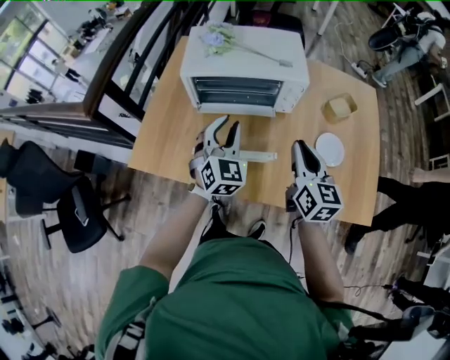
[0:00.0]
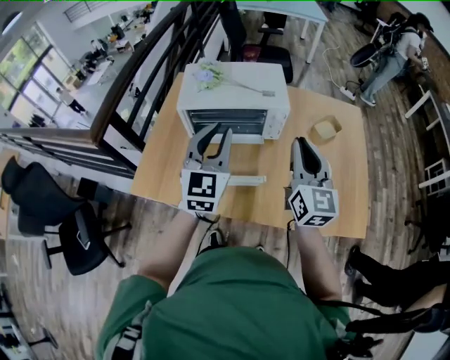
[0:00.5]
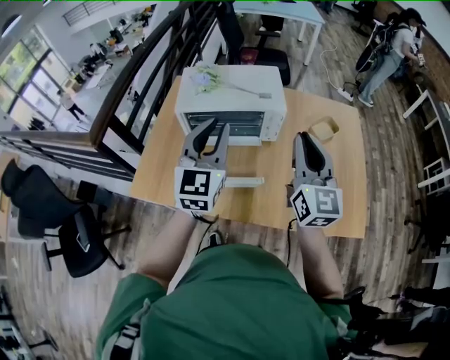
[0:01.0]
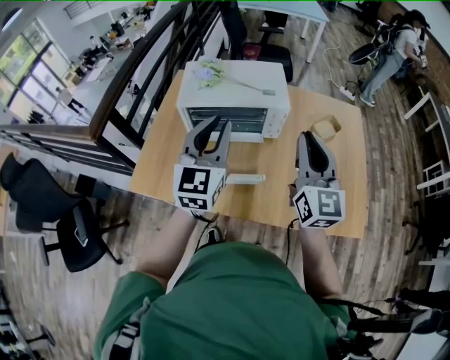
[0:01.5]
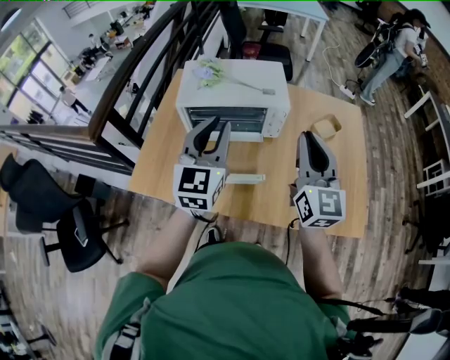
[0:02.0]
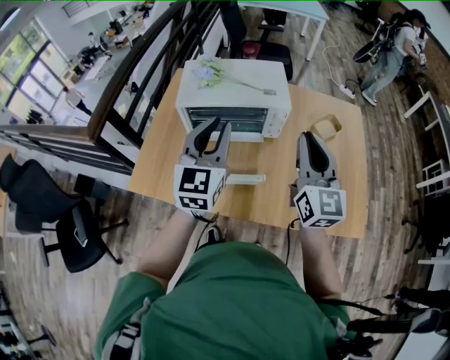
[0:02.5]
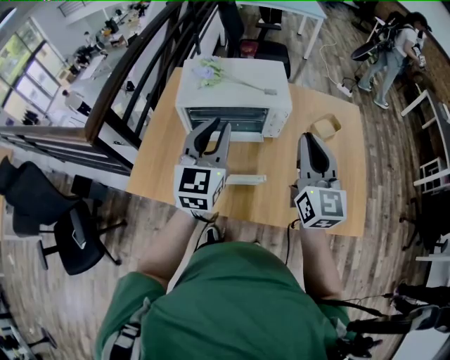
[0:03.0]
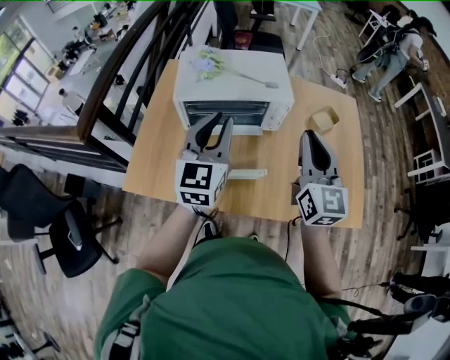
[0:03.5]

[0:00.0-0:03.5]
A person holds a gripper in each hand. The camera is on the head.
0:00.0 to 0:02.0: Both grippers travel together upward, approximately 15 cm. The left gripper changes its angle by approximately 30 degrees, while the right gripper changes its angle by some 20 degrees.
0:02.0 to 0:03.5: The grippers move only a little.

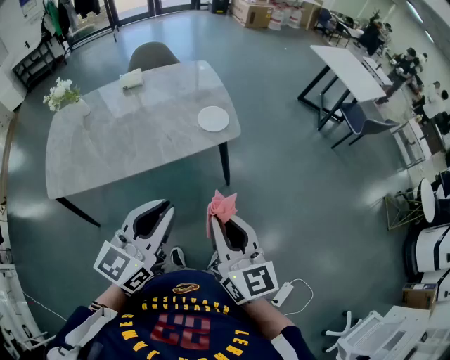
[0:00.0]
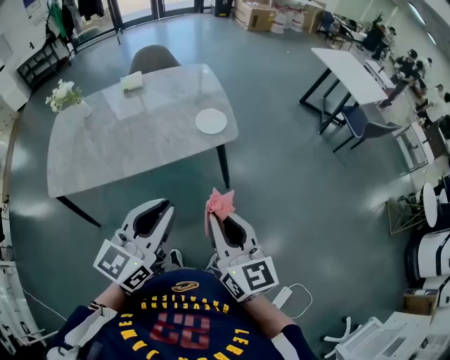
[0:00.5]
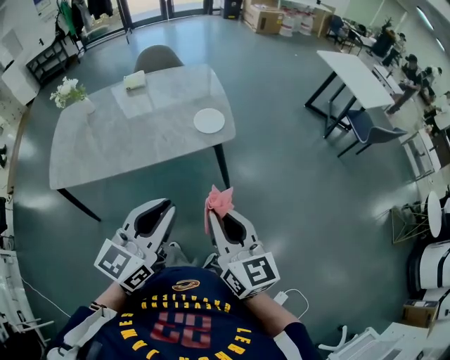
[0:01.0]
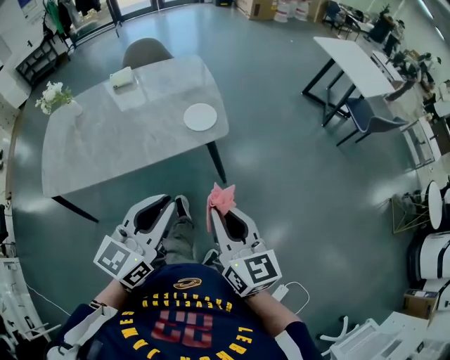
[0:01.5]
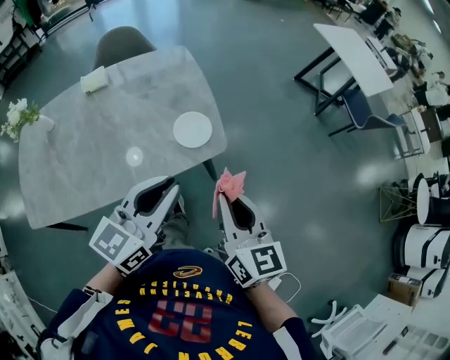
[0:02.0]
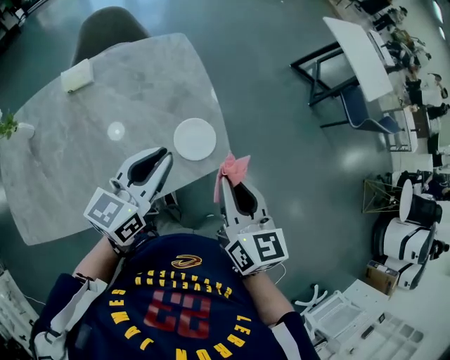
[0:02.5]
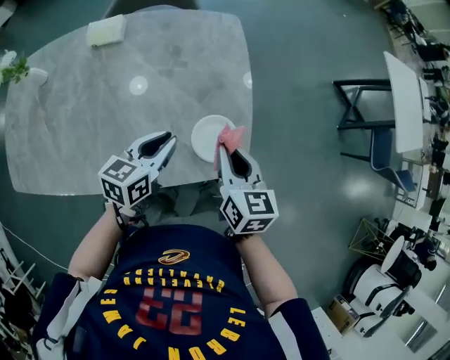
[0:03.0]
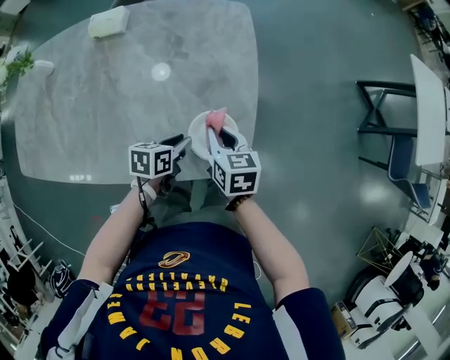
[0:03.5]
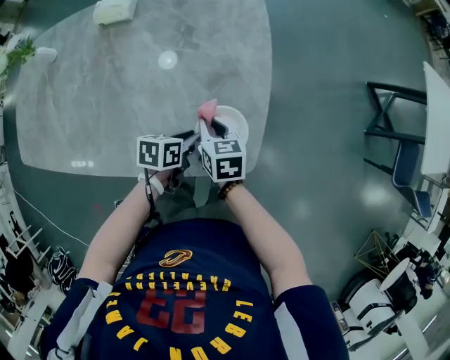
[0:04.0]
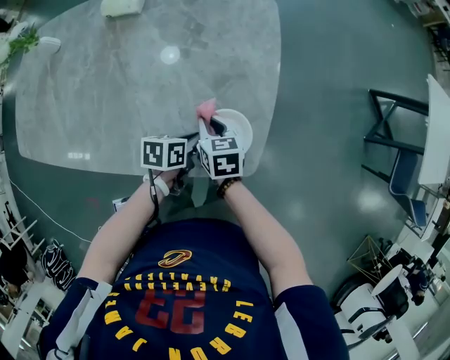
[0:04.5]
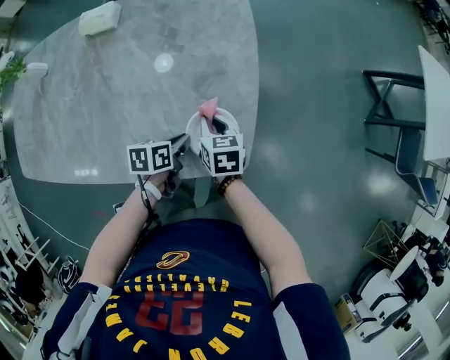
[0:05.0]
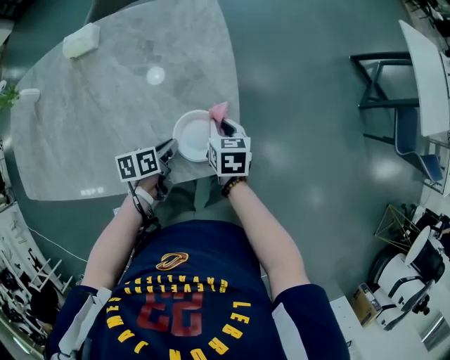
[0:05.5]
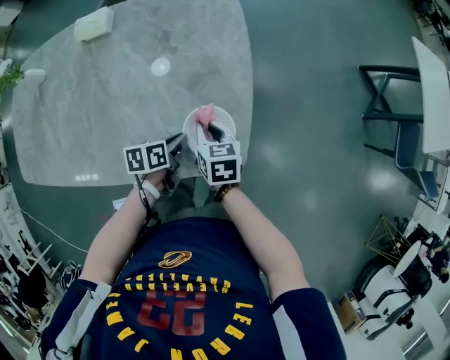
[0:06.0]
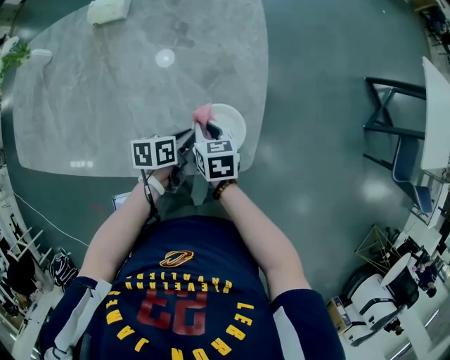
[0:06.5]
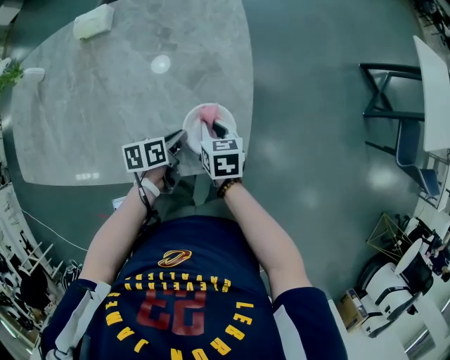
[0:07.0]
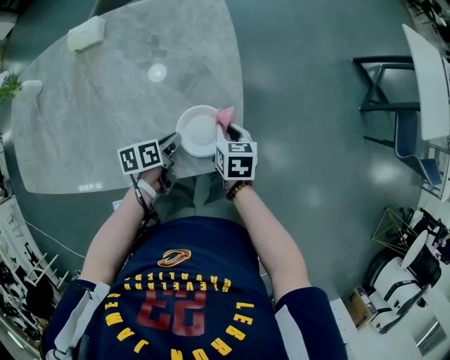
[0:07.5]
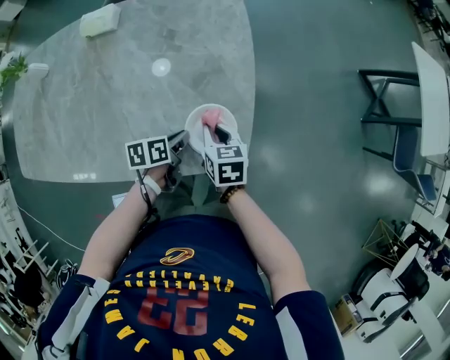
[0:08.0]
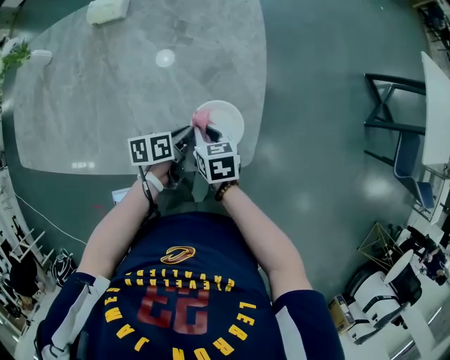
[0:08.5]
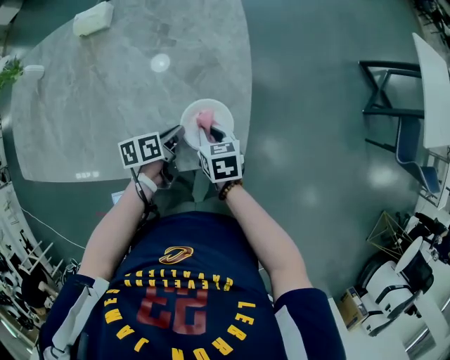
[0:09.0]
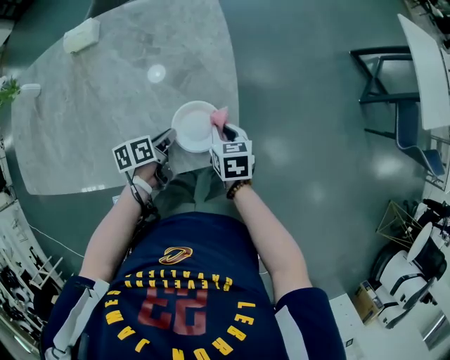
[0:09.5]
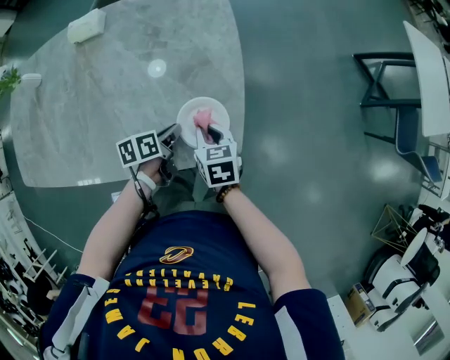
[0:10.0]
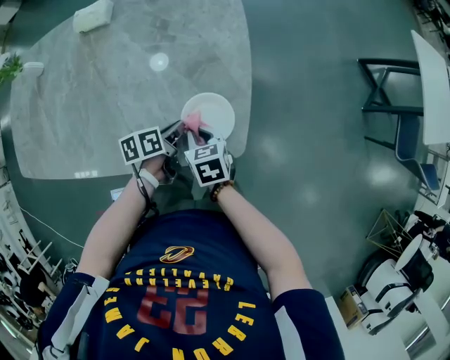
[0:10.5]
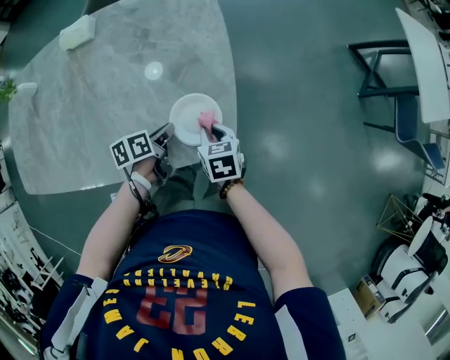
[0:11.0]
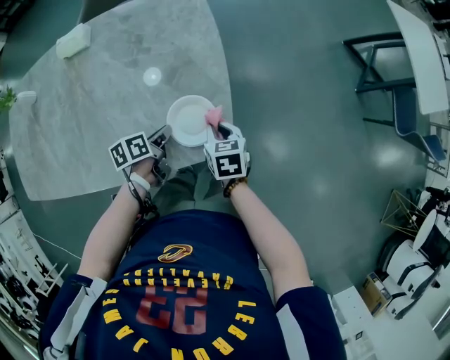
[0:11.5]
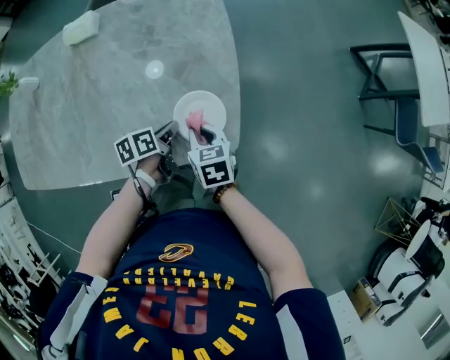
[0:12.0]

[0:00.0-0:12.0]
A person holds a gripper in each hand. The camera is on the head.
0:00.0 to 0:02.0: The grippers both shift forward by approximately 25 cm.
0:02.0 to 0:04.0: The grippers both shift downward and forward by about 50 cm. The left gripper tilts its fingers roughly 40 degrees downward. Meanwhile the right gripper angles its fingers downward, by approximately 30 degrees.
0:04.0 to 0:06.0: The right gripper moves some 10 cm to the right and comes back.
0:06.0 to 0:08.0: The right gripper goes left and right, roughly 10 cm each way, reversing 2 times.
0:08.0 to 0:10.0: The right gripper swings left and right, roughly 10 cm each way, with 2 reversals.
0:10.0 to 0:12.0: The right gripper moves left and right over roughly 10 cm, changing direction 2 times.

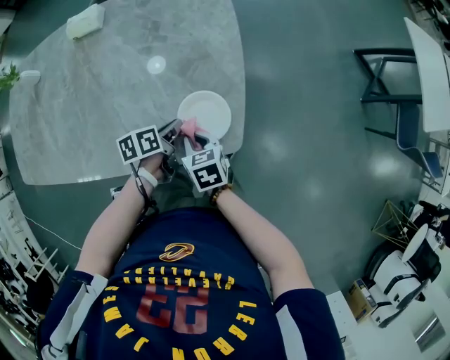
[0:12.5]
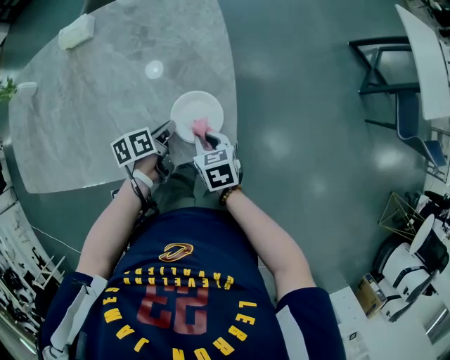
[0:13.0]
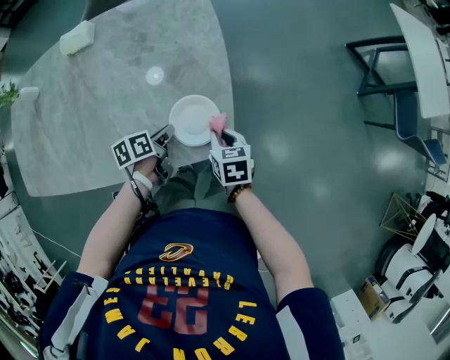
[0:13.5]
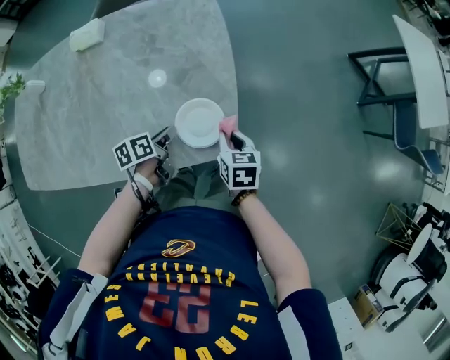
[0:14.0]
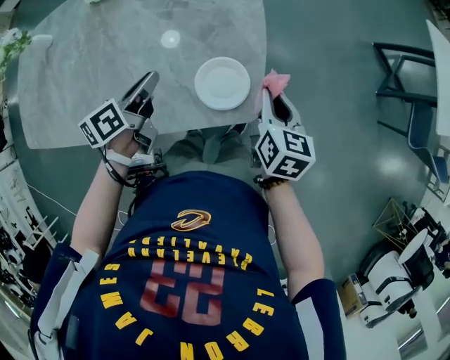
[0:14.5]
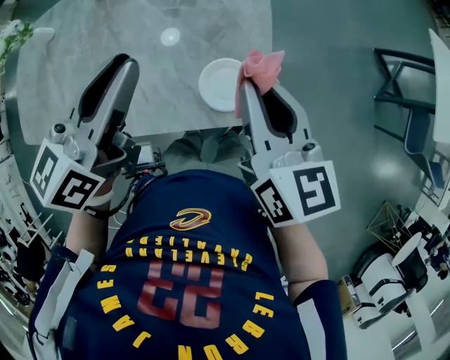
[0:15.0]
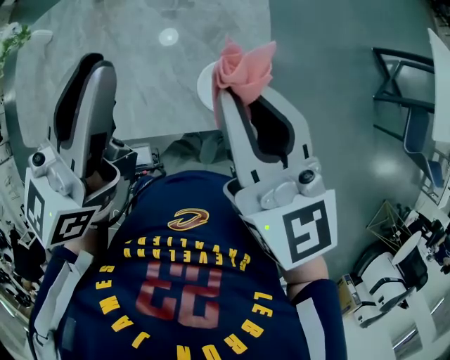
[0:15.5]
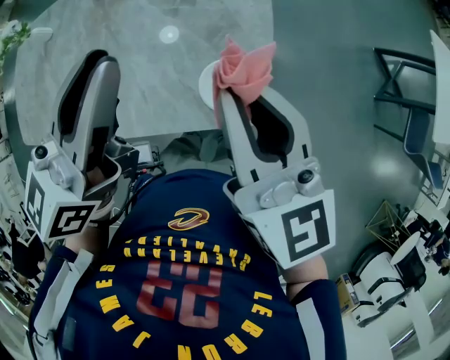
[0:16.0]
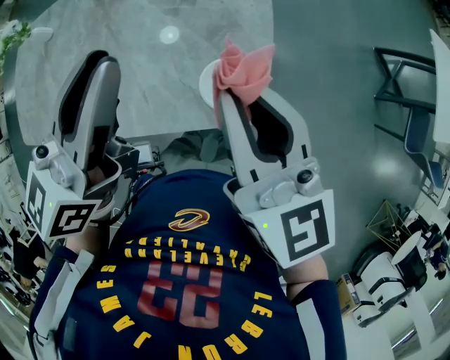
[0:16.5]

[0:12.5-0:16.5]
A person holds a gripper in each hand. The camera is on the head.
0:12.5 to 0:14.5: The right gripper goes about 20 cm to the right, upward and forward, and swivels about 30 degrees. The left gripper heads upward and to the left, covering about 15 cm, and swivels roughly 20 degrees.
0:14.5 to 0:16.5: The right gripper goes roughly 25 cm upward and to the left, and swivels roughly 40 degrees; the left gripper is displaced upward by approximately 30 cm, and turns by approximately 40 degrees.

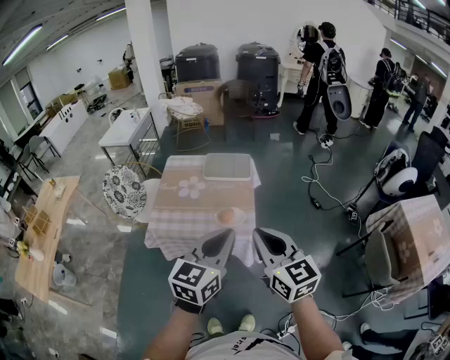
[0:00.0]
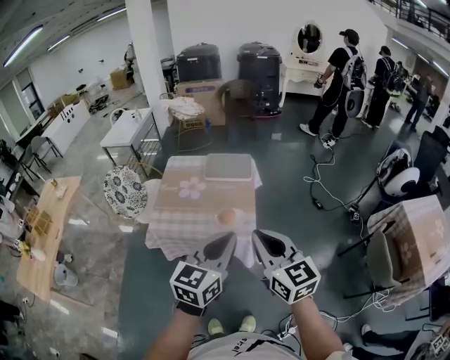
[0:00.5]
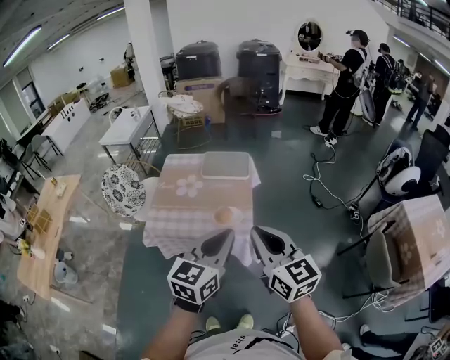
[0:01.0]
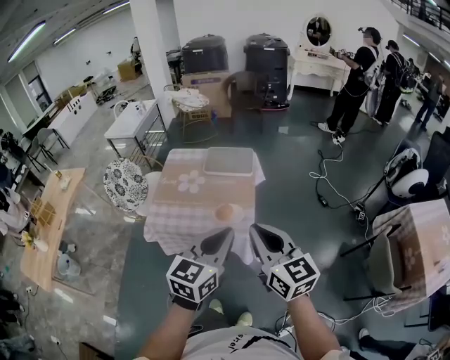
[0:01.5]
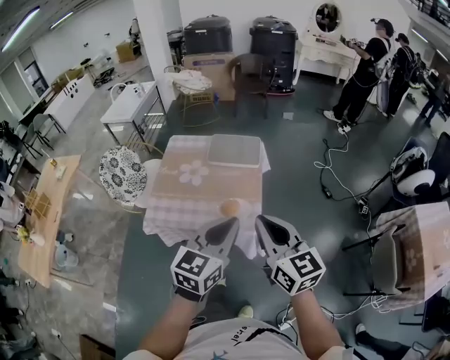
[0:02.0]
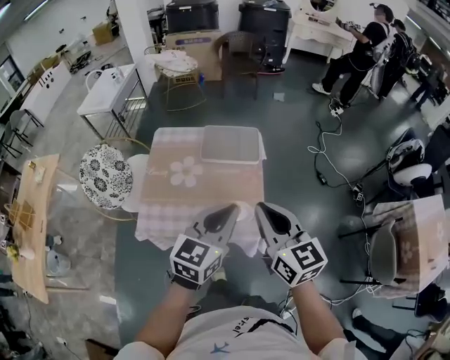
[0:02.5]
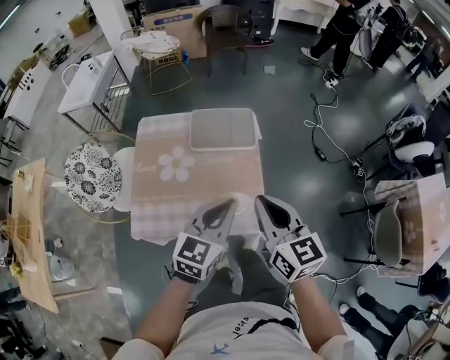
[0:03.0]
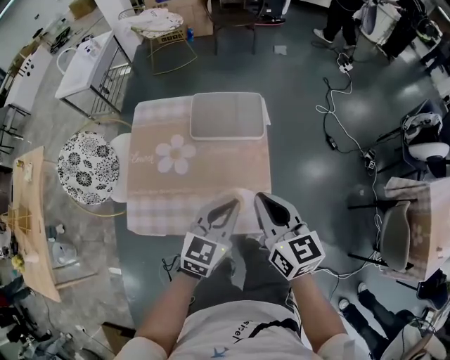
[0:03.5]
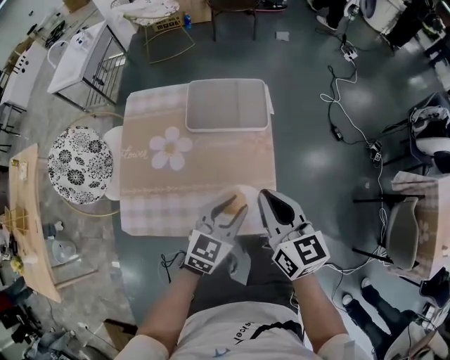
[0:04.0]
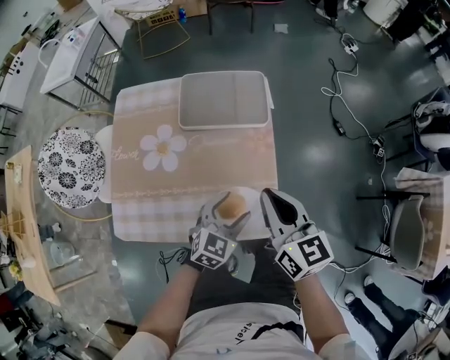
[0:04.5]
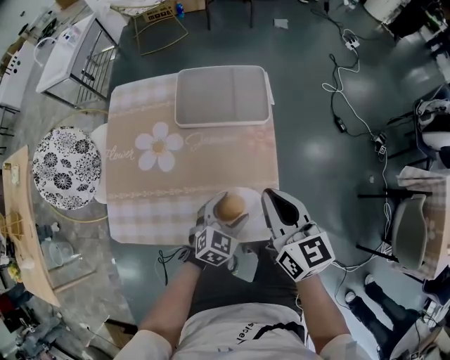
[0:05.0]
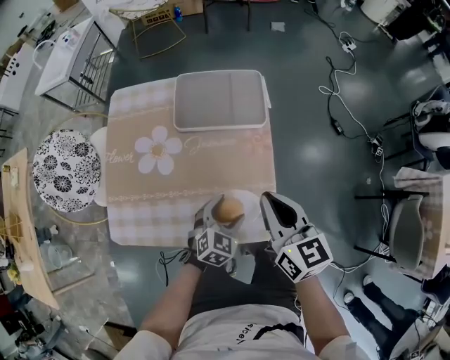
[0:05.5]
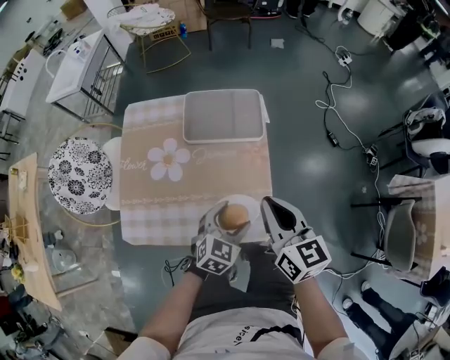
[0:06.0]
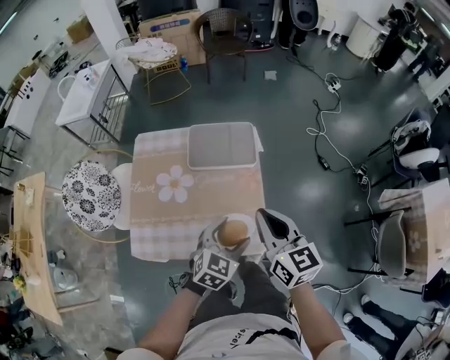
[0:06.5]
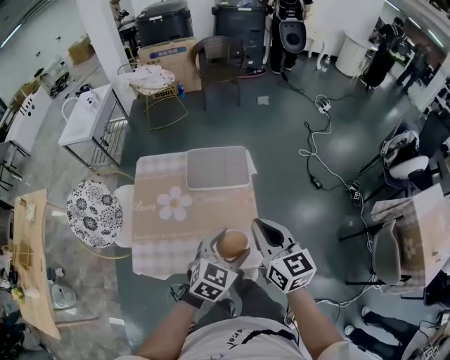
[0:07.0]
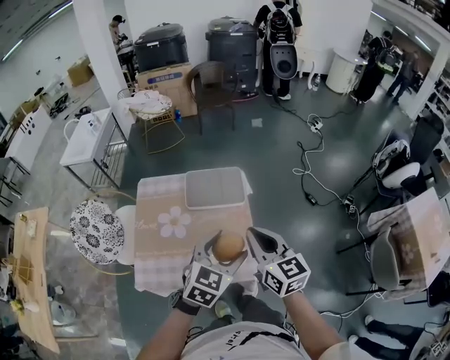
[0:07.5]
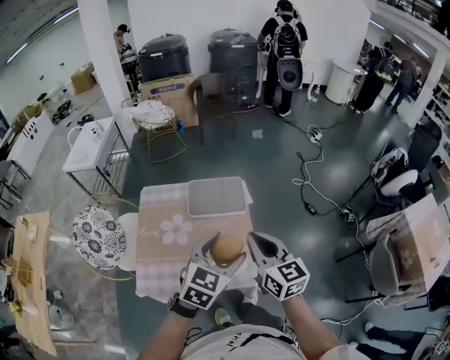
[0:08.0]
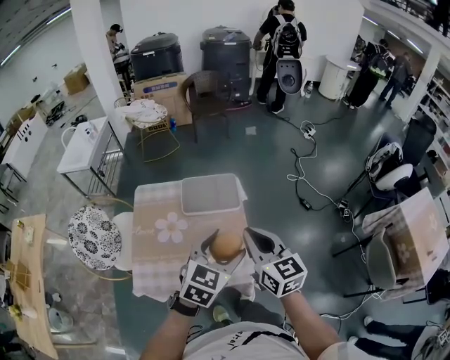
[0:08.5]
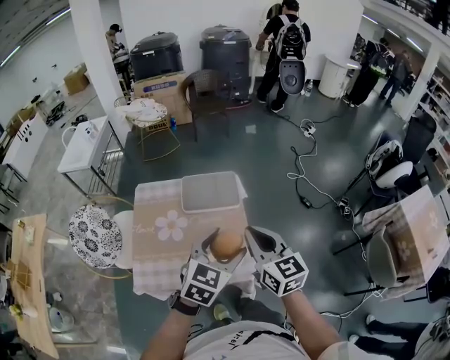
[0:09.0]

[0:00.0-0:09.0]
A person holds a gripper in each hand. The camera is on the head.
0:00.0 to 0:02.0: The two grippers go about 10 cm forward.
0:02.0 to 0:04.5: Both grippers travel together downward and forward, some 40 cm. The left gripper swivels approximately 30 degrees, and opens up.
0:04.5 to 0:07.0: The two grippers go roughly 20 cm upward.
0:07.0 to 0:09.0: The left gripper moves upward, about 10 cm; the right gripper is displaced upward by about 5 cm.
